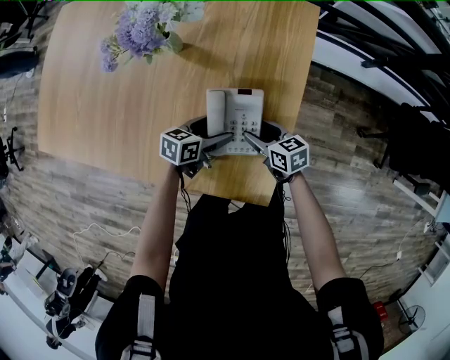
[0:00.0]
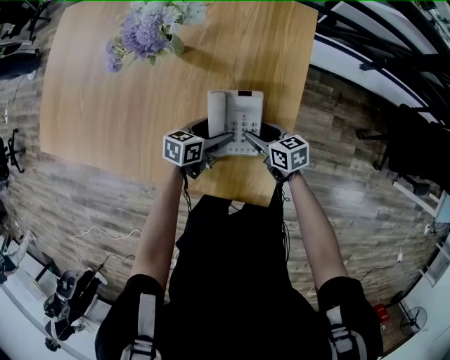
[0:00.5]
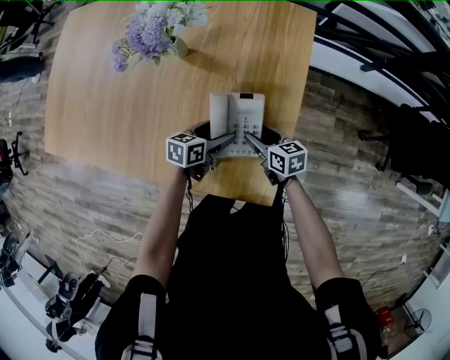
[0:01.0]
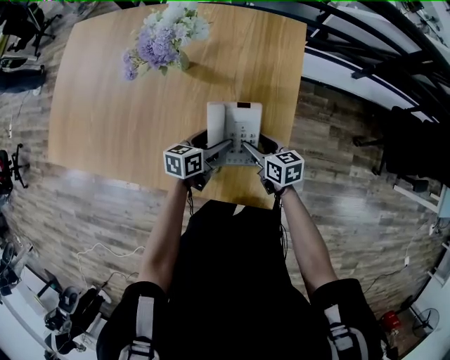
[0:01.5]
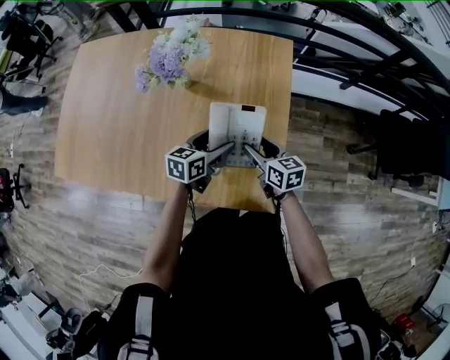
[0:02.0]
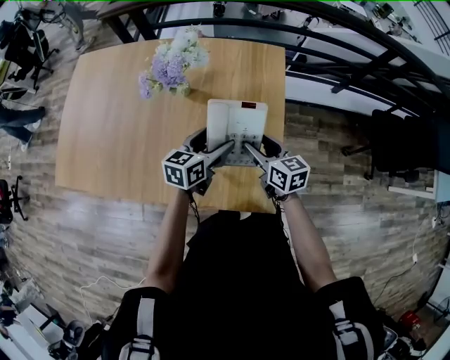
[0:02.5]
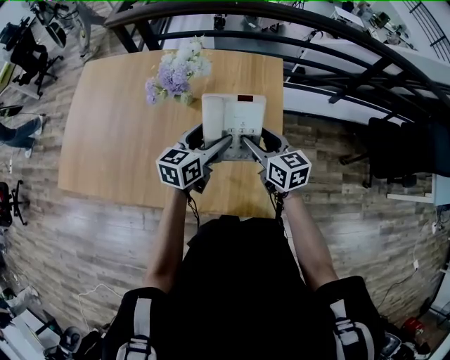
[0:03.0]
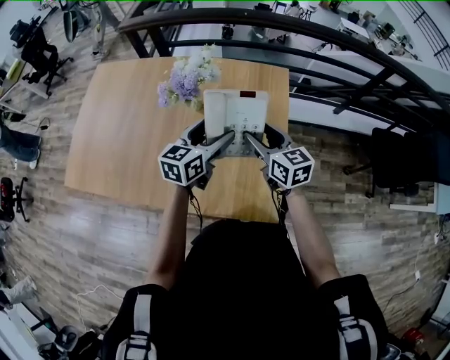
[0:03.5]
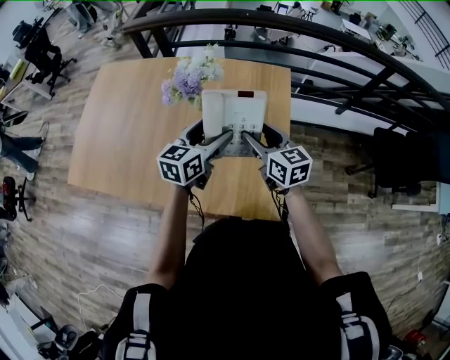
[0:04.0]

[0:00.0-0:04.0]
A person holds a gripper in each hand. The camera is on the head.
0:00.0 to 0:02.0: Both grippers travel together upward, approximately 15 cm. The right gripper turns by approximately 20 degrees.
0:02.0 to 0:04.0: Both grippers move upward, roughly 15 cm. The left gripper rotates roughly 20 degrees.

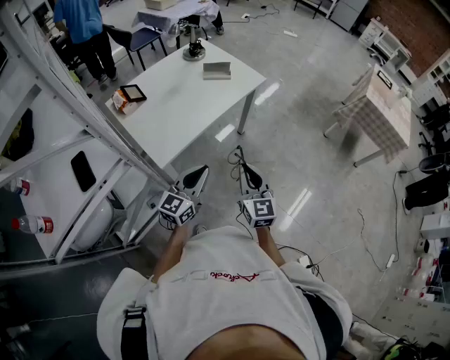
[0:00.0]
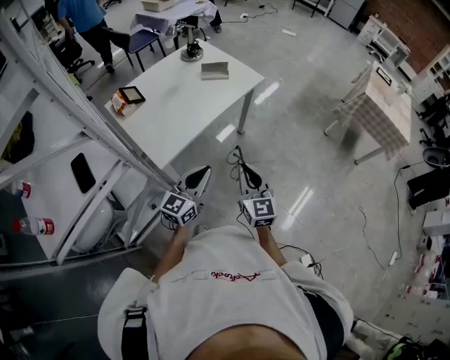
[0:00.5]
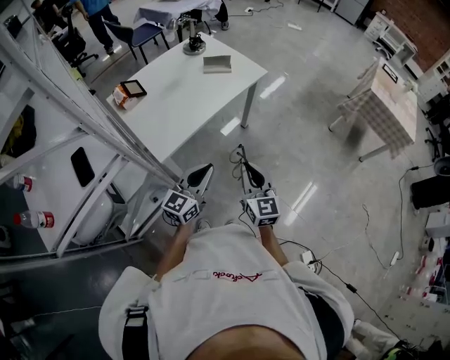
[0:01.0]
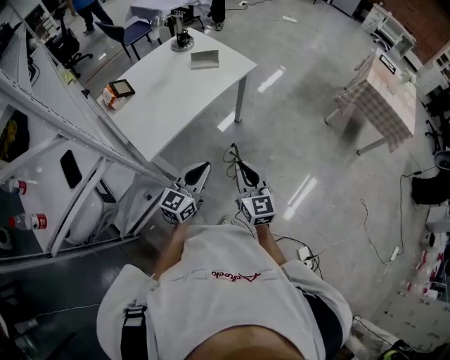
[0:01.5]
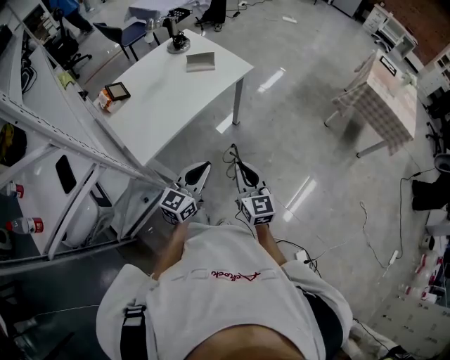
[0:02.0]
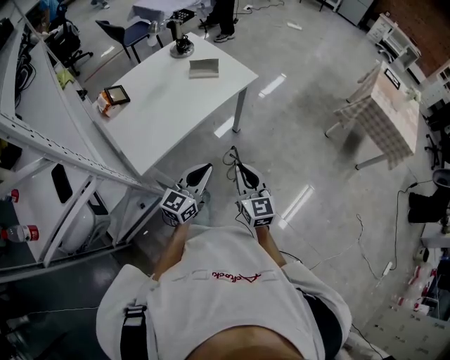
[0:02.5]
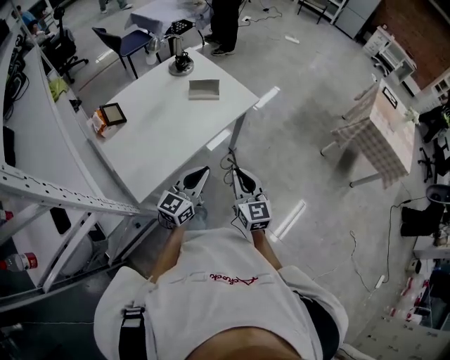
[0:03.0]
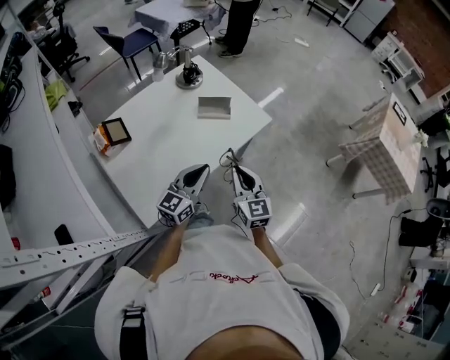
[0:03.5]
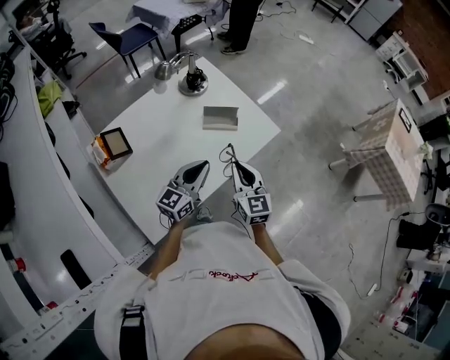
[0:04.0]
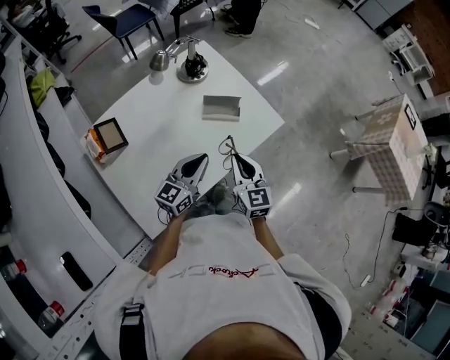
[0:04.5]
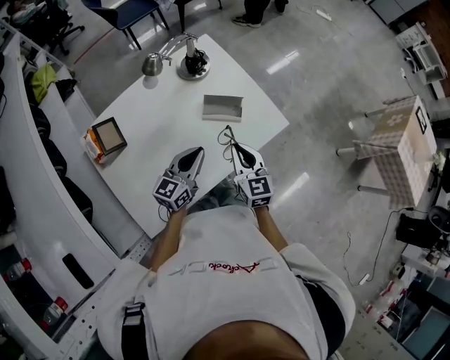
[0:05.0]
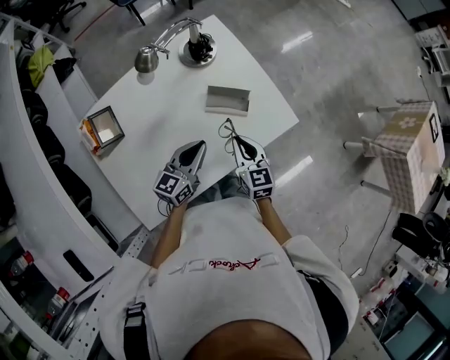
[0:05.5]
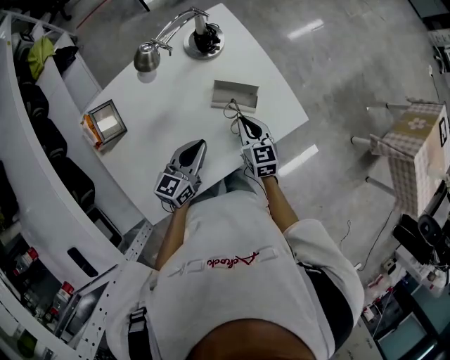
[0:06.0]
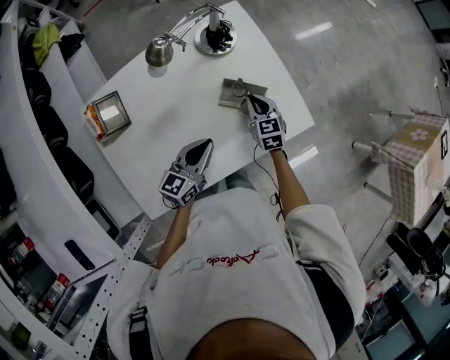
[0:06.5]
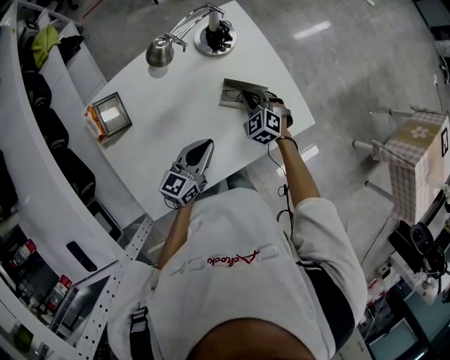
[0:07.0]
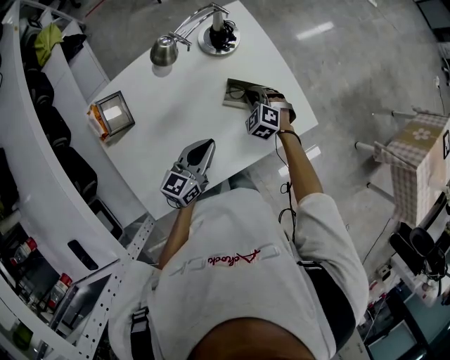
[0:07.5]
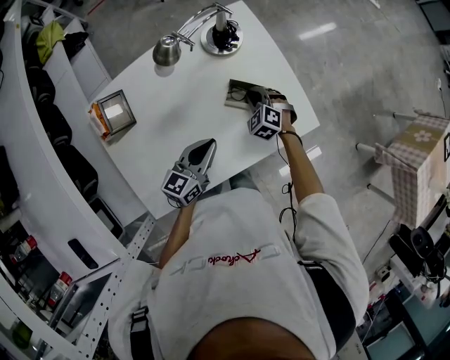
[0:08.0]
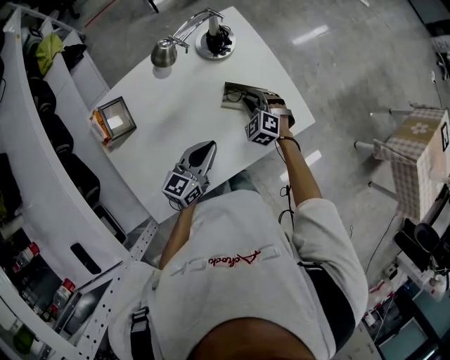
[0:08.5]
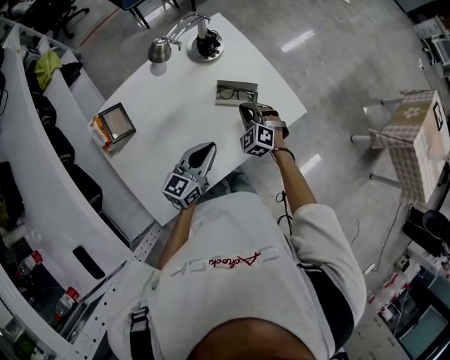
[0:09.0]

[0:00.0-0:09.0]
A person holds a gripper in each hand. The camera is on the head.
0:00.0 to 0:02.0: The grippers both shift to the right by roughly 10 cm.
0:02.0 to 0:04.5: Both grippers travel together forward and to the left, about 40 cm.
0:04.5 to 0:07.0: The left gripper is displaced forward and downward by some 10 cm; the right gripper travels forward and downward by about 25 cm, and turns by some 60 degrees.
0:07.0 to 0:09.0: The right gripper moves backward, about 5 cm, and opens, then closes again.

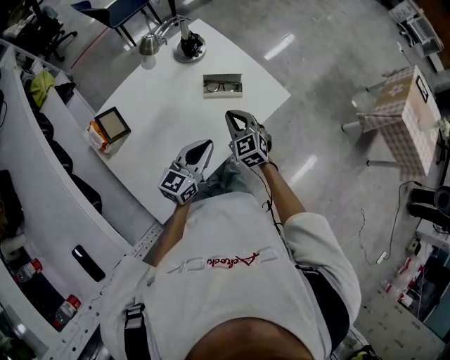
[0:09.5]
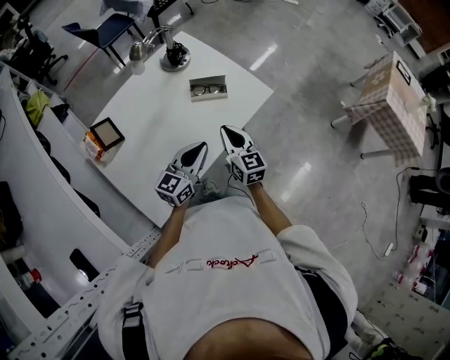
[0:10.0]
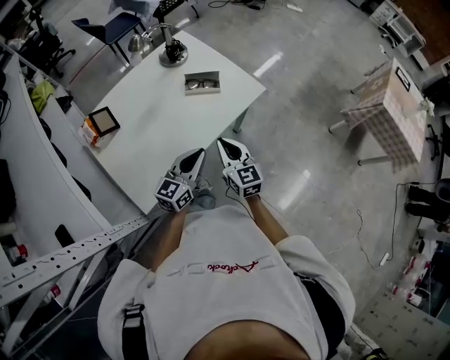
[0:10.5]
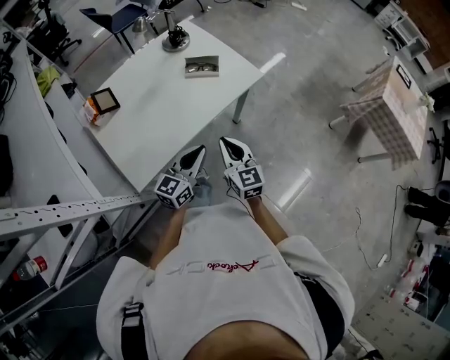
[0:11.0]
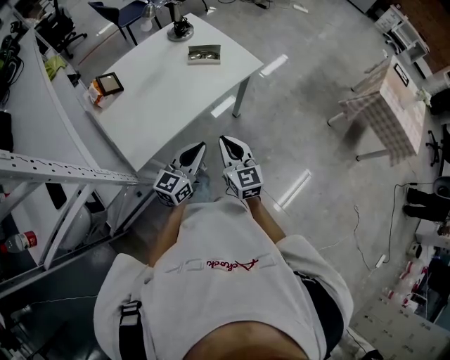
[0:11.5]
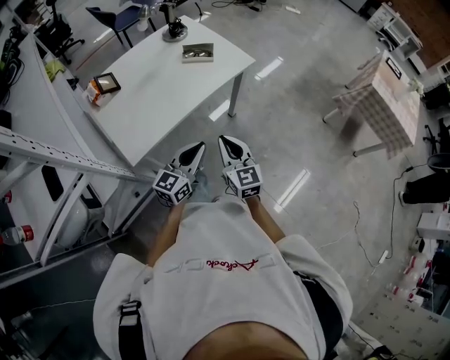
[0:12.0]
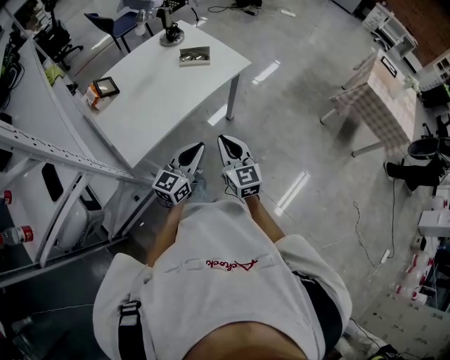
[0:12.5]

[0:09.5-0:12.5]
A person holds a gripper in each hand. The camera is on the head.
0:09.5 to 0:11.0: The two grippers go roughly 20 cm backward and to the right. The right gripper turns by some 30 degrees.
0:11.0 to 0:12.5: The grippers both shift backward by roughly 10 cm.

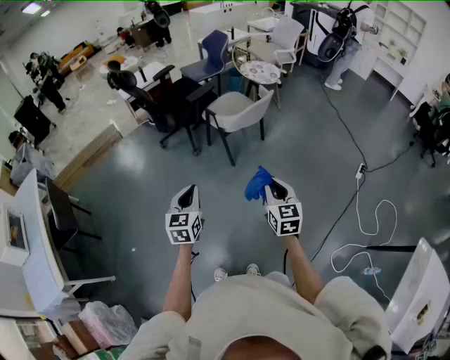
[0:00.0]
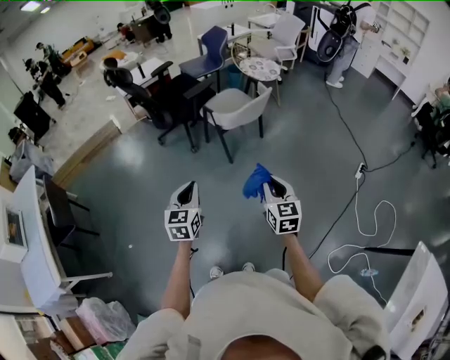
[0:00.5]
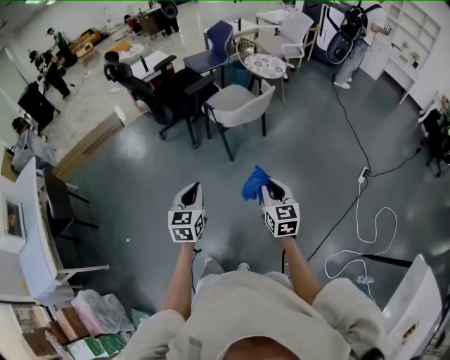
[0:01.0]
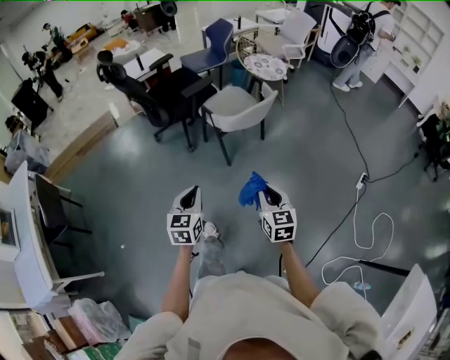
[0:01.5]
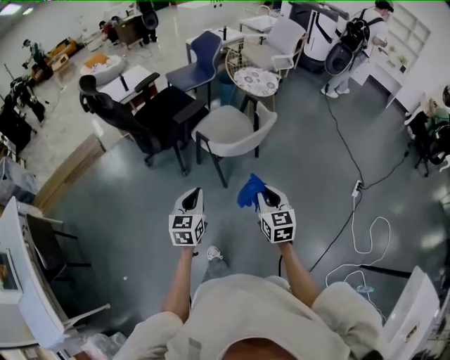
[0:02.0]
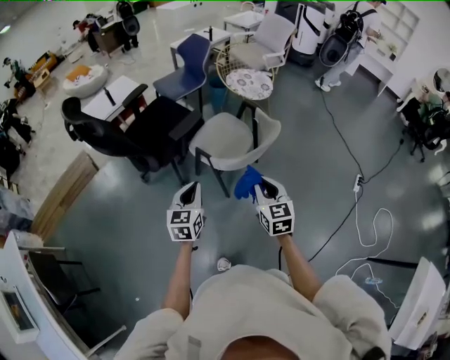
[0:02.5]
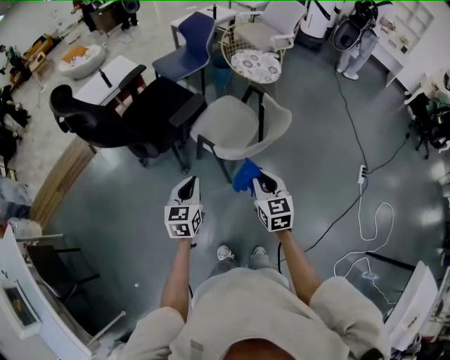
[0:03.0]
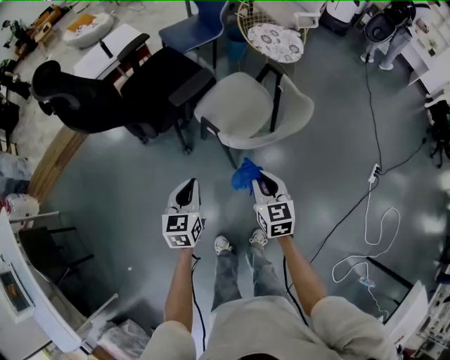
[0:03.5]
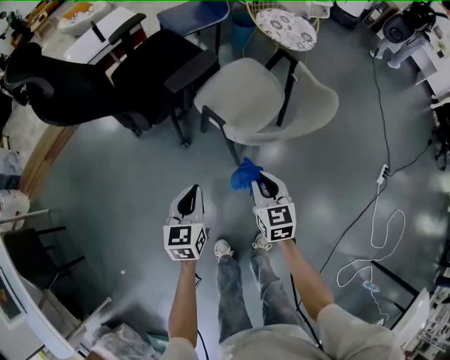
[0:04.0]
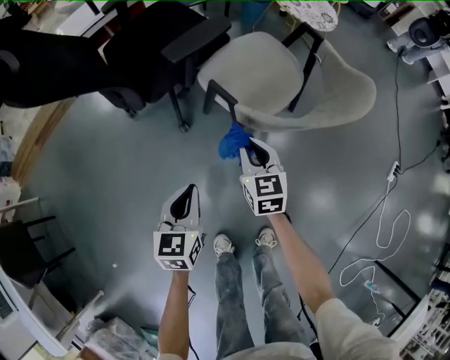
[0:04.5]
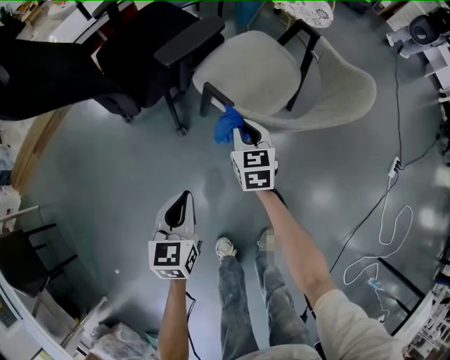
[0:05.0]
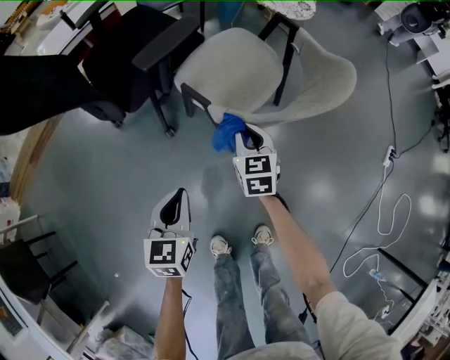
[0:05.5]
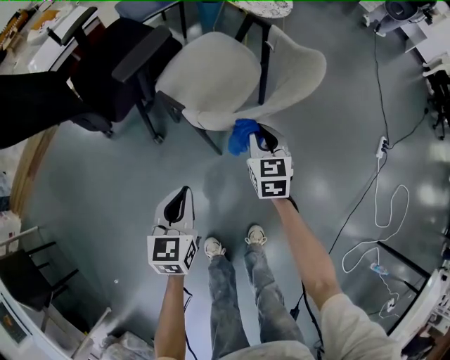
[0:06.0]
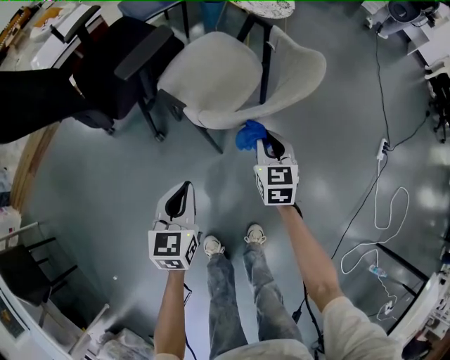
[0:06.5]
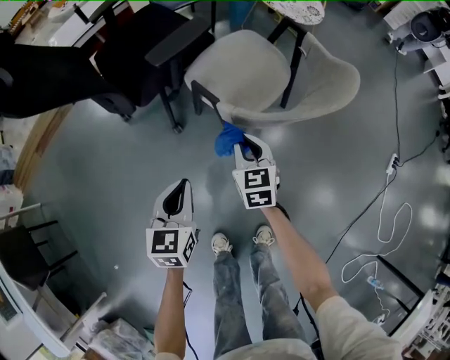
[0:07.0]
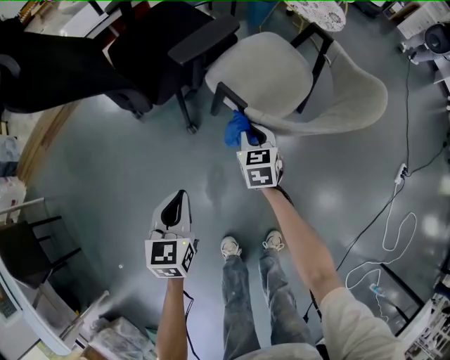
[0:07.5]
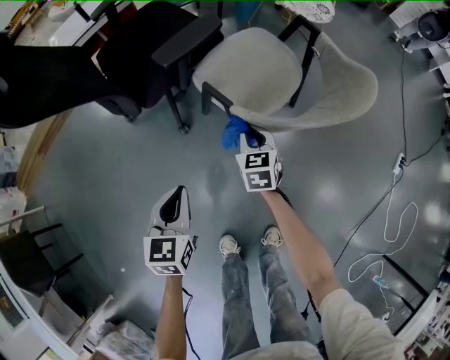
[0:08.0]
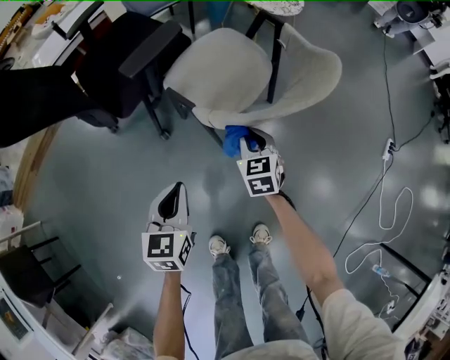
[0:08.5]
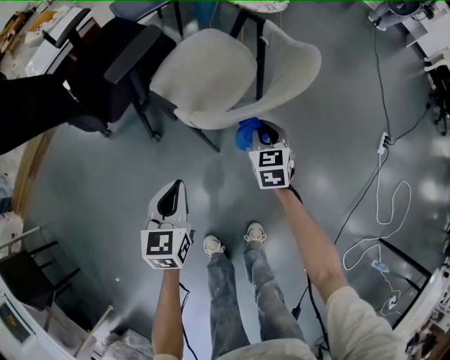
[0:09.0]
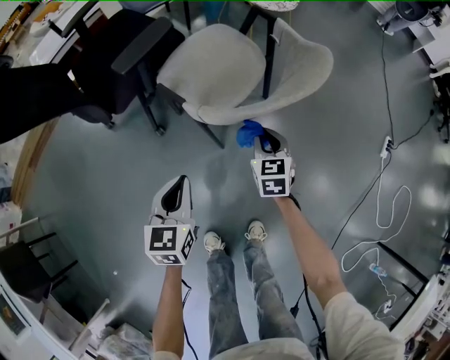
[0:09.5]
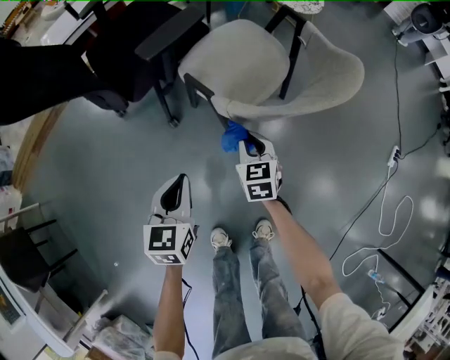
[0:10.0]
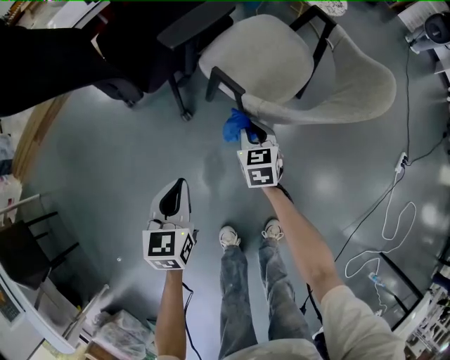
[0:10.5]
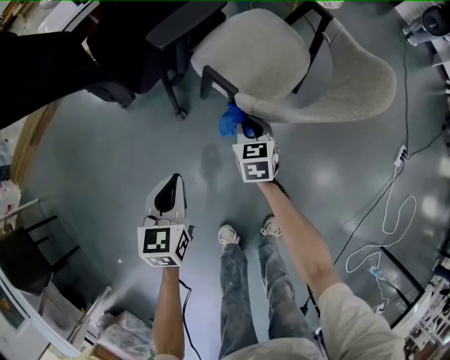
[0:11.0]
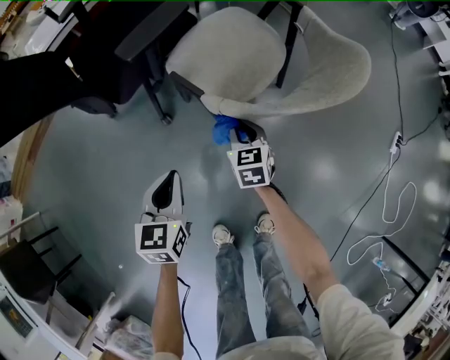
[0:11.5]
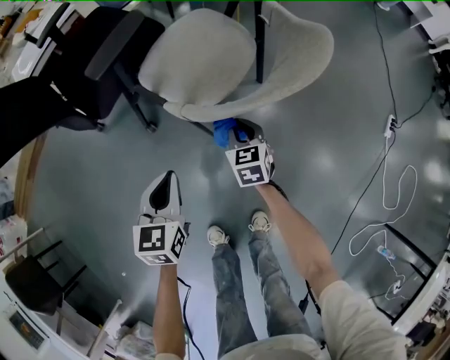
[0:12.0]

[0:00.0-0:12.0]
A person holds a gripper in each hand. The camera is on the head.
0:00.0 to 0:02.0: The two grippers go approximately 25 cm forward.
0:02.0 to 0:04.0: The left gripper goes approximately 30 cm downward and forward. Meanwhile the right gripper is displaced downward, forward and to the left by about 35 cm.
0:04.0 to 0:06.0: The left gripper moves to the right and downward, about 10 cm, while the right gripper moves to the right, forward and downward, about 15 cm.
0:06.0 to 0:08.0: The right gripper moves to the left and downward, about 15 cm; the left gripper shifts about 10 cm to the left.
0:08.0 to 0:10.0: The right gripper travels to the right and back again, some 20 cm each way, while the left gripper shifts roughly 5 cm to the right.
0:10.0 to 0:12.0: Both grippers travel together to the right, roughly 5 cm.
